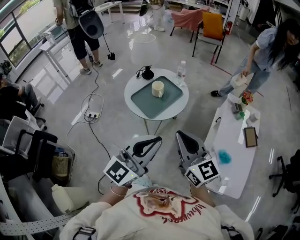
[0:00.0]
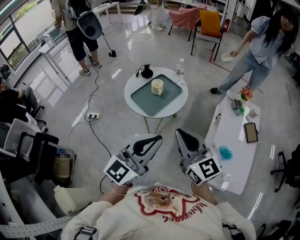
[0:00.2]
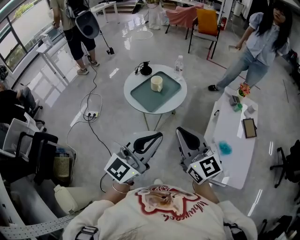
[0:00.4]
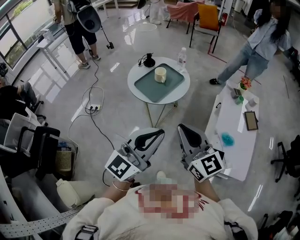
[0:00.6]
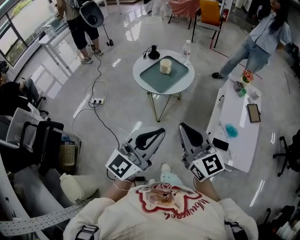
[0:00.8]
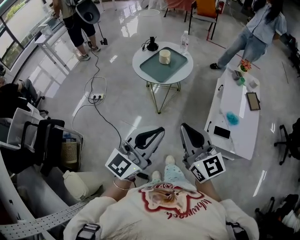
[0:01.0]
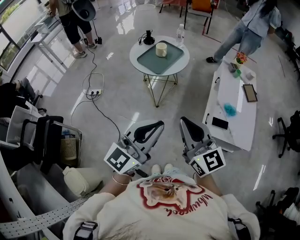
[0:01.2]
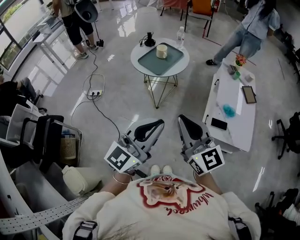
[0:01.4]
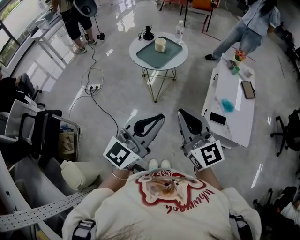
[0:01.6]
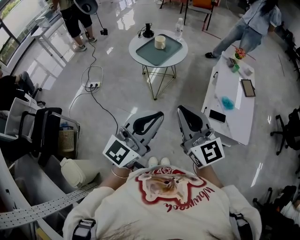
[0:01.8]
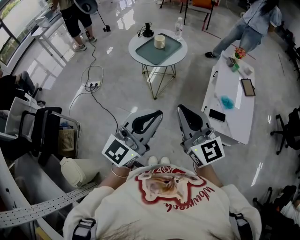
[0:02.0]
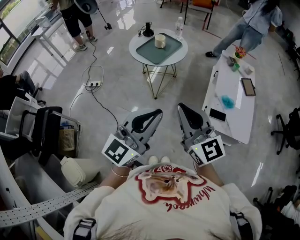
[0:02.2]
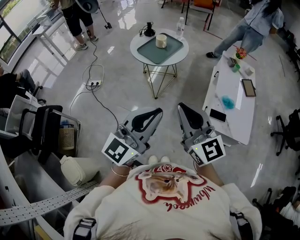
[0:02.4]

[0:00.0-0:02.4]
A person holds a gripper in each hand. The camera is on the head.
0:00.0 to 0:01.2: Both grippers travel together backward, approximately 25 cm.
0:01.2 to 0:02.4: The grippers move only a little.

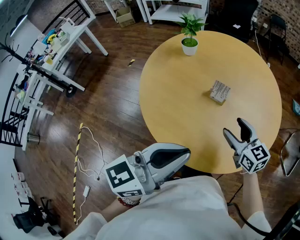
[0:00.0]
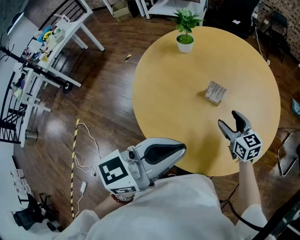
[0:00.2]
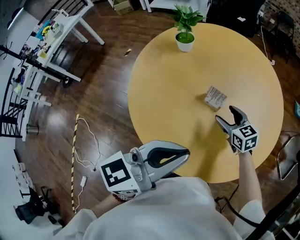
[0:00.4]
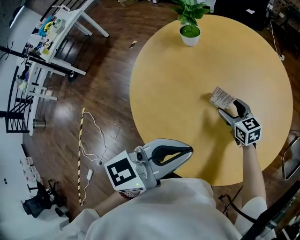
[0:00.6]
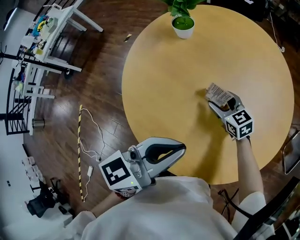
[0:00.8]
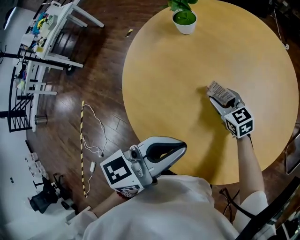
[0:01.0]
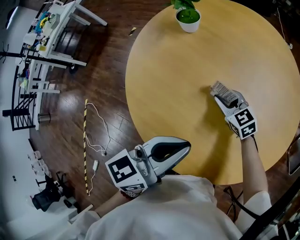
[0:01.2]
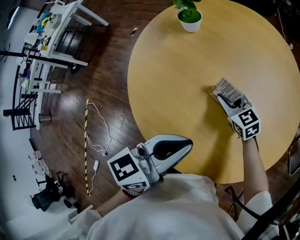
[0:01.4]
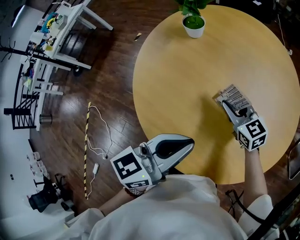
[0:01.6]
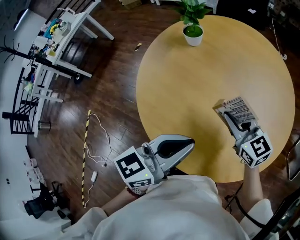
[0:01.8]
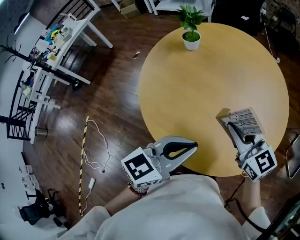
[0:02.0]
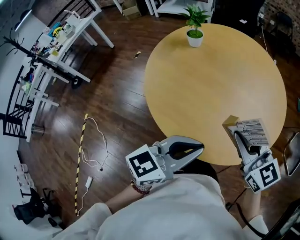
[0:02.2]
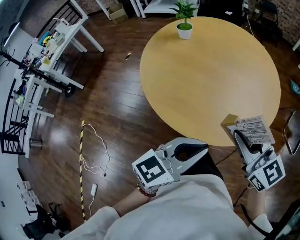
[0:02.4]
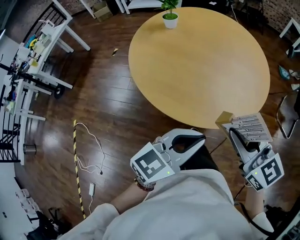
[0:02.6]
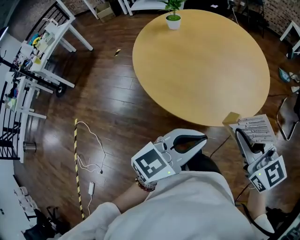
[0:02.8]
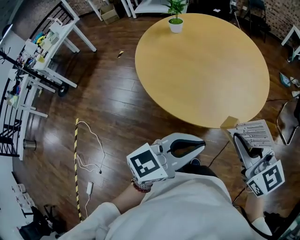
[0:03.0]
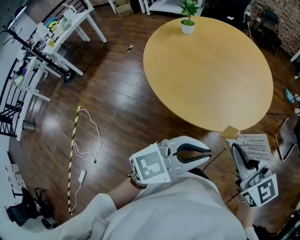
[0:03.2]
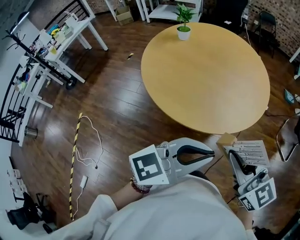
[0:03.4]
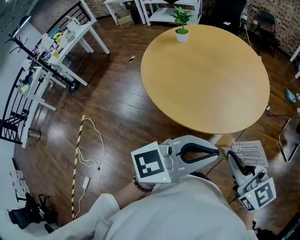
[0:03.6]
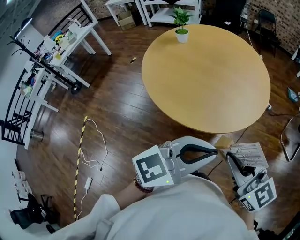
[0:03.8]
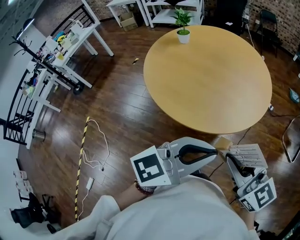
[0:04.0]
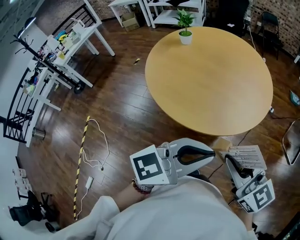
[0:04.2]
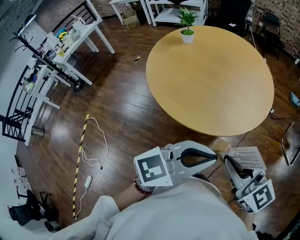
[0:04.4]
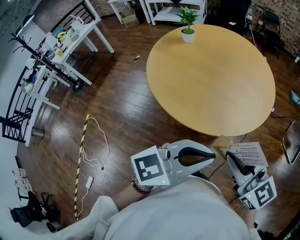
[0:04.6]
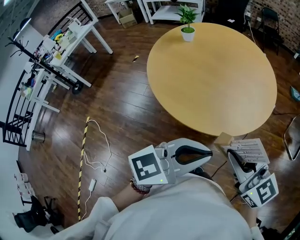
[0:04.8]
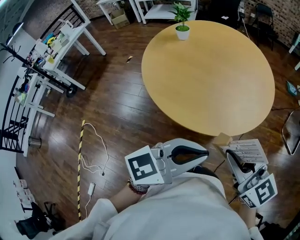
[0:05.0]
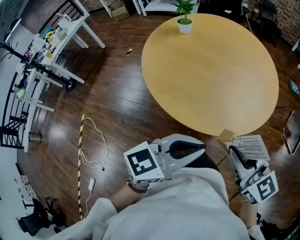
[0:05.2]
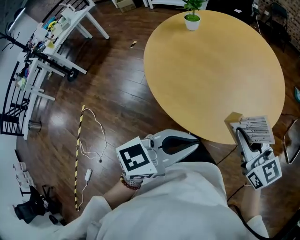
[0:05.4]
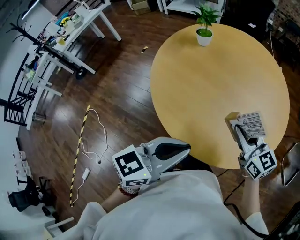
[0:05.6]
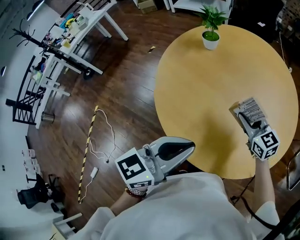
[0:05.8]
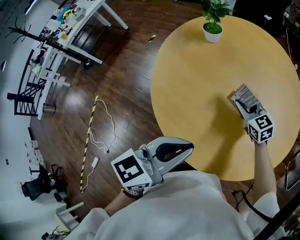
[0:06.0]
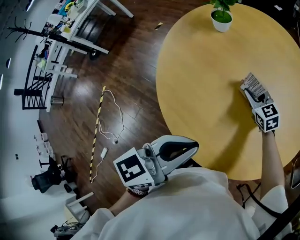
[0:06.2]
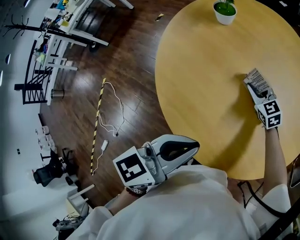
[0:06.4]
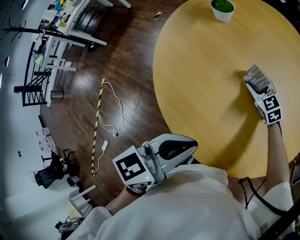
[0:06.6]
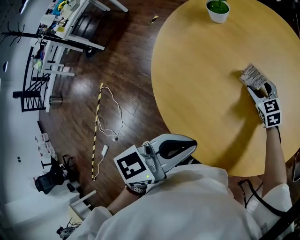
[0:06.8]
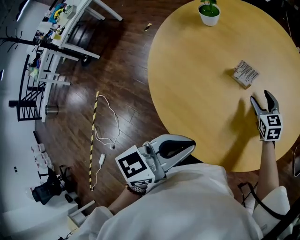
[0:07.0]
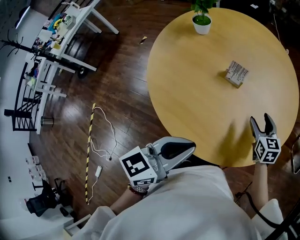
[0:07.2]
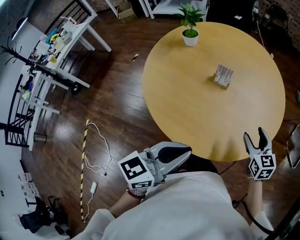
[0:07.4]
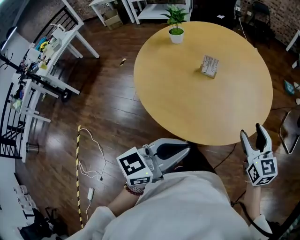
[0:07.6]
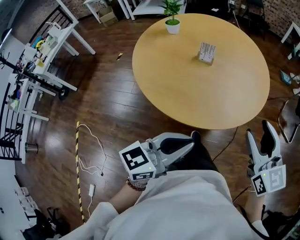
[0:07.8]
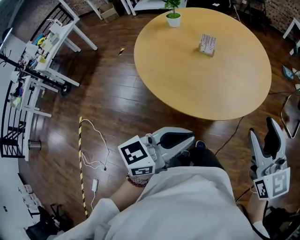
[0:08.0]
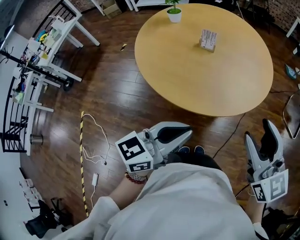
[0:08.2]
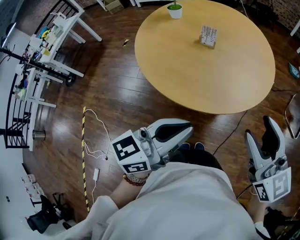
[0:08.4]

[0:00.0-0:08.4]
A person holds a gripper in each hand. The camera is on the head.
0:00.0 to 0:01.4: Both grippers move forward and downward, some 25 cm. The right gripper closes up.
0:01.4 to 0:02.8: The left gripper travels backward by approximately 30 cm, and turns by some 30 degrees. Meanwhile the right gripper heads backward and upward, covering roughly 50 cm, and turns by about 20 degrees.
0:02.8 to 0:04.2: The left gripper shifts about 15 cm to the right, upward and backward, while the right gripper is displaced backward and to the right by approximately 10 cm.
0:04.2 to 0:05.6: The left gripper goes some 25 cm forward, to the left and downward, and changes its angle by roughly 20 degrees. Meanwhile the right gripper goes roughly 30 cm forward and downward.
0:05.6 to 0:07.0: The left gripper is displaced forward and downward by about 10 cm. The right gripper moves forward and downward, approximately 25 cm, changes its angle by roughly 30 degrees, and opens.
0:07.0 to 0:08.4: The left gripper heads backward, to the right and upward, covering roughly 25 cm. Meanwhile the right gripper is displaced backward and upward by some 50 cm, and points its fingers about 30 degrees further upward.

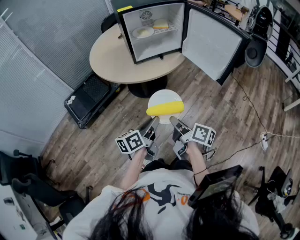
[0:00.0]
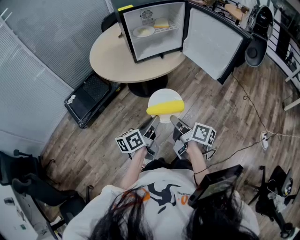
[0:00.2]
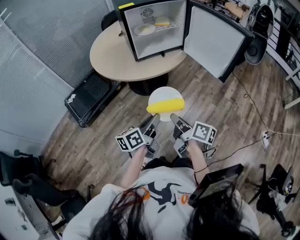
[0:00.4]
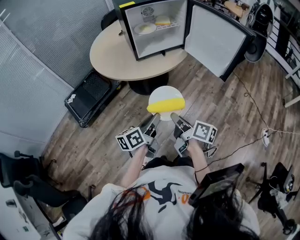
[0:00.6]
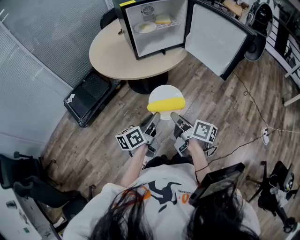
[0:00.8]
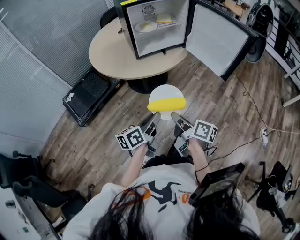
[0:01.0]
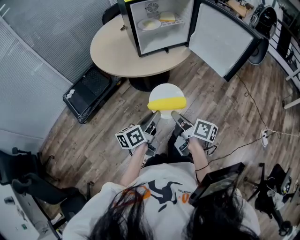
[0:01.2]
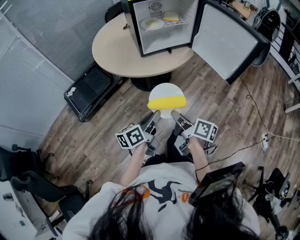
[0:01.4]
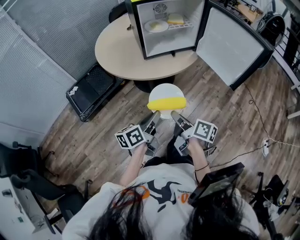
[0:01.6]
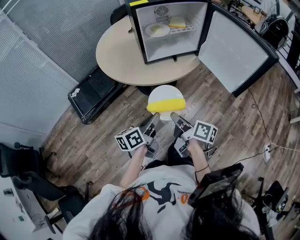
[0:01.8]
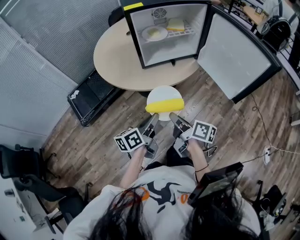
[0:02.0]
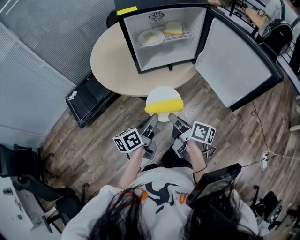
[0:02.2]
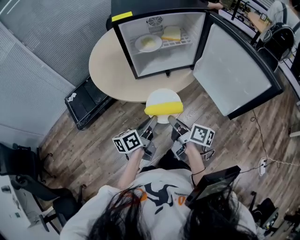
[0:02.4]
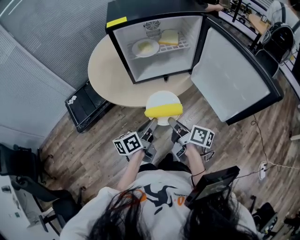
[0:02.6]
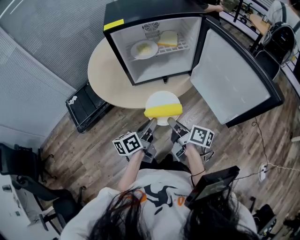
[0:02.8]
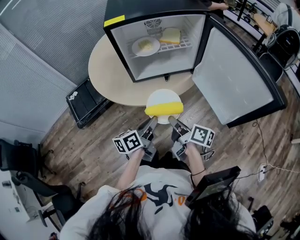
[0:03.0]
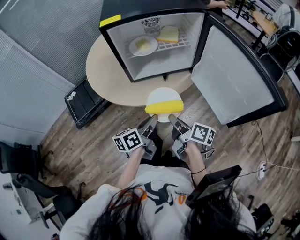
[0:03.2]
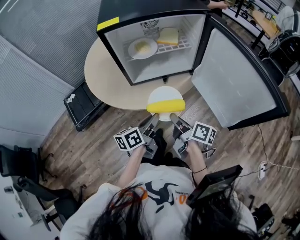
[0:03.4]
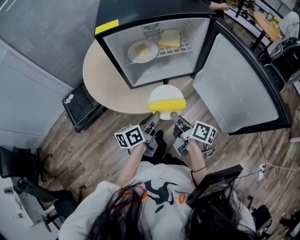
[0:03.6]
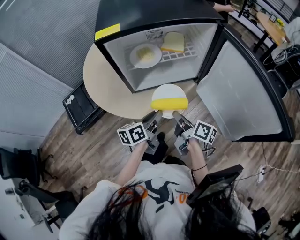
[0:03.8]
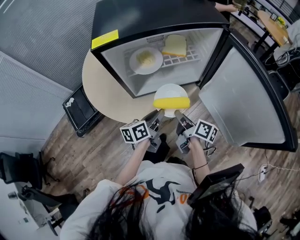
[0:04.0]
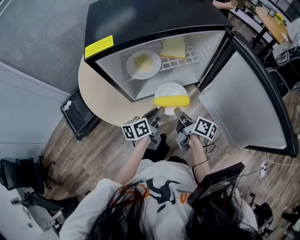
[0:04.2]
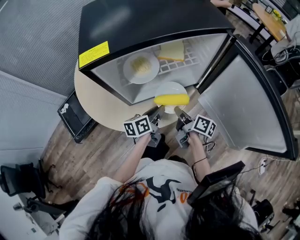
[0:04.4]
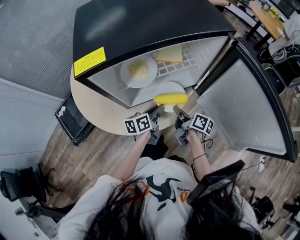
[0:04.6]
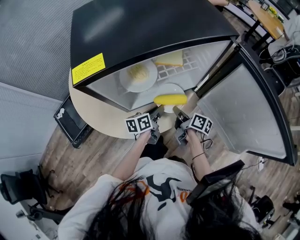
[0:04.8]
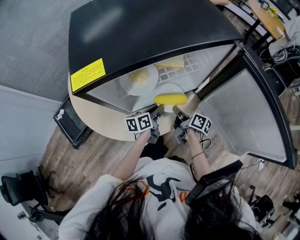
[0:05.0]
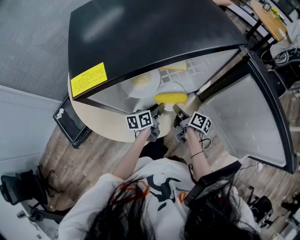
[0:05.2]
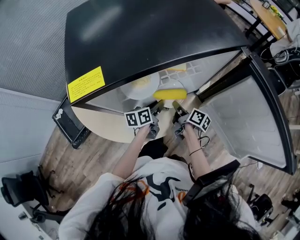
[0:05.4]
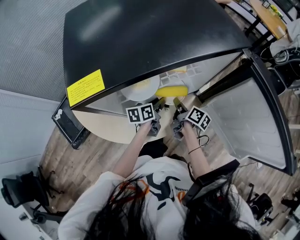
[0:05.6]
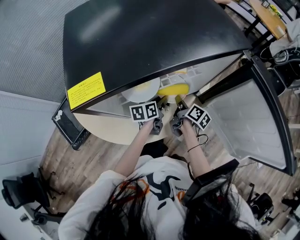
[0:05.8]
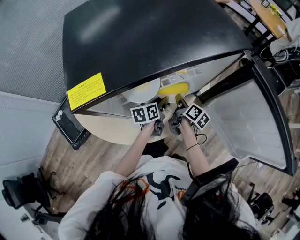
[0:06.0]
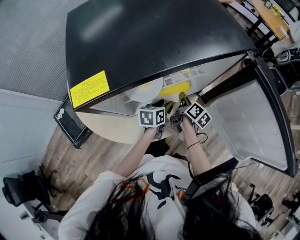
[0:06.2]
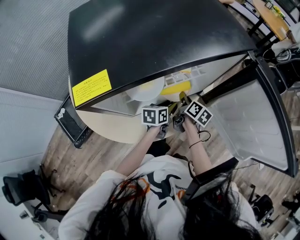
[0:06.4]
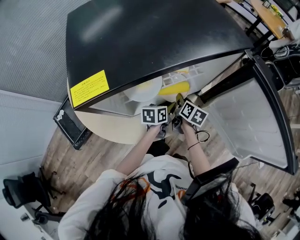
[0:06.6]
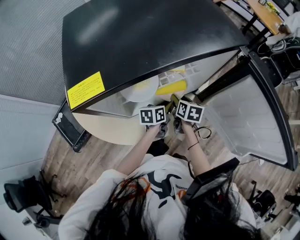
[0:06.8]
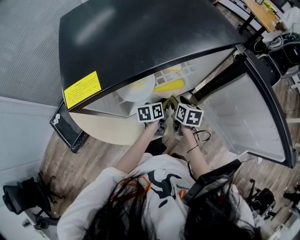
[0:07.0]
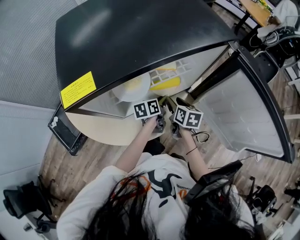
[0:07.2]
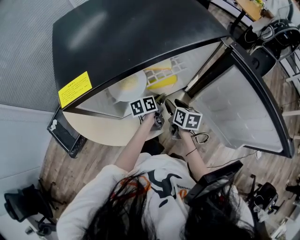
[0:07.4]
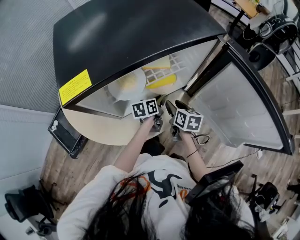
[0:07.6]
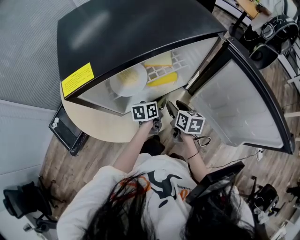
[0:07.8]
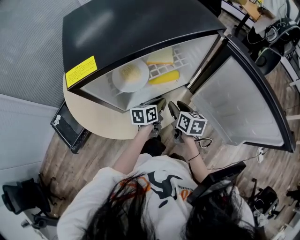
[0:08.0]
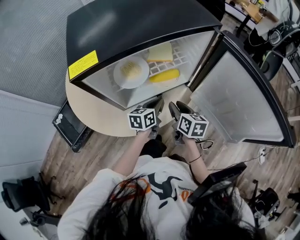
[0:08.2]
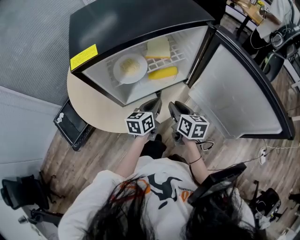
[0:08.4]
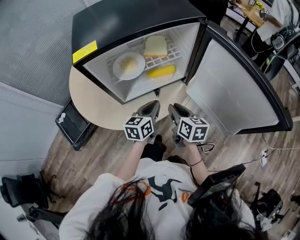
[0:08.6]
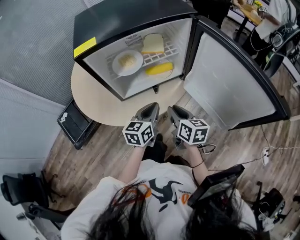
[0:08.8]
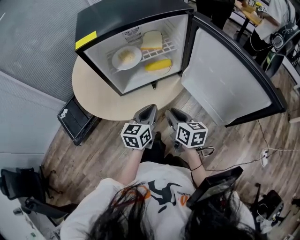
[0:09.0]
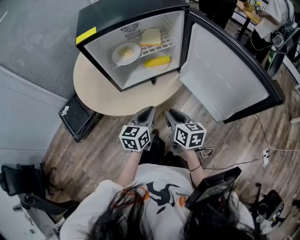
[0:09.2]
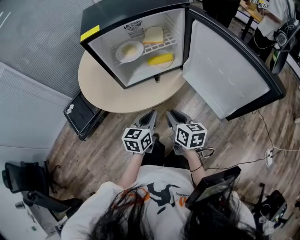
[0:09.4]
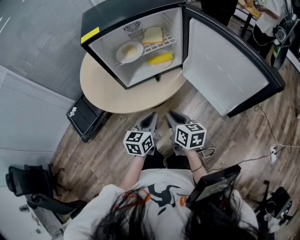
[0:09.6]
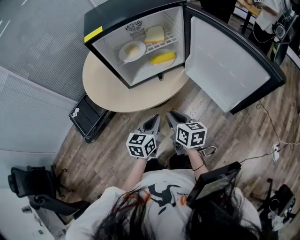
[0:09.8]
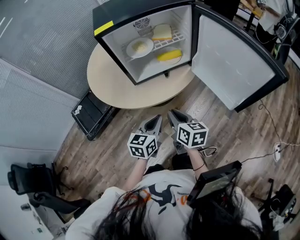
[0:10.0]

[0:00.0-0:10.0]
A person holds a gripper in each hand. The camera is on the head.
0:00.0 to 0:01.4: The right gripper moves about 5 cm, while the left gripper changes place by about 5 cm.
0:01.4 to 0:02.8: Both grippers travel together forward and to the right, some 20 cm.
0:02.8 to 0:04.2: Both grippers move forward, roughly 20 cm.
0:04.2 to 0:05.8: The grippers both shift forward and downward by some 15 cm. The right gripper turns by about 20 degrees.
0:05.8 to 0:07.2: The right gripper swivels about 40 degrees, and opens.
0:07.2 to 0:08.6: Both grippers move backward and upward, approximately 15 cm. The right gripper closes up; the left gripper changes its angle by roughly 30 degrees.
0:08.6 to 0:10.0: The grippers both shift backward by roughly 20 cm.

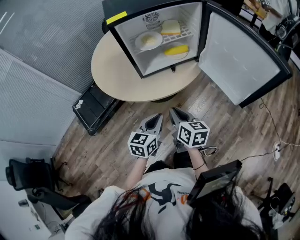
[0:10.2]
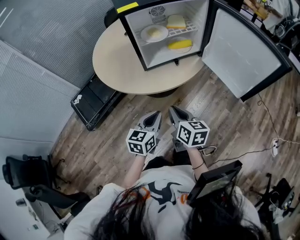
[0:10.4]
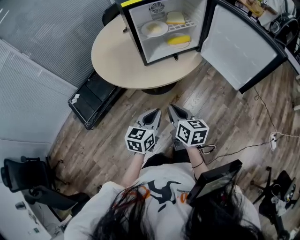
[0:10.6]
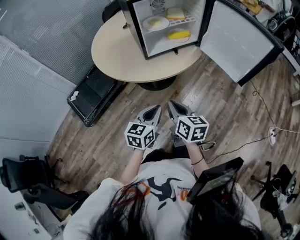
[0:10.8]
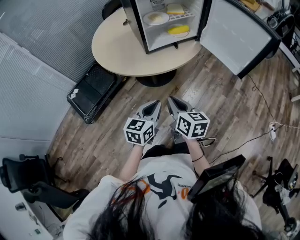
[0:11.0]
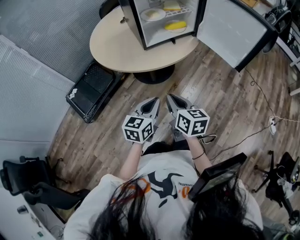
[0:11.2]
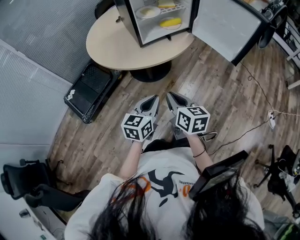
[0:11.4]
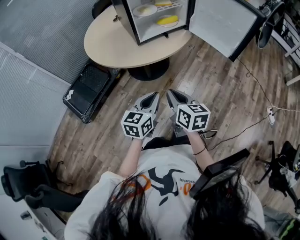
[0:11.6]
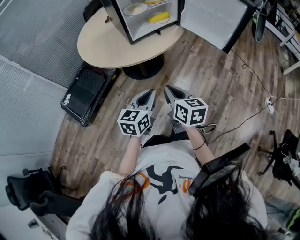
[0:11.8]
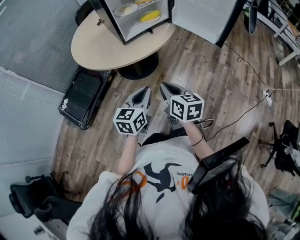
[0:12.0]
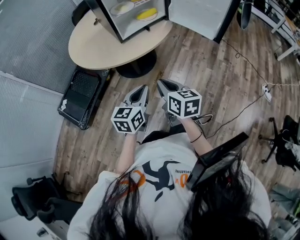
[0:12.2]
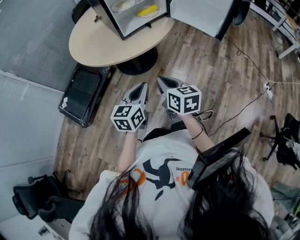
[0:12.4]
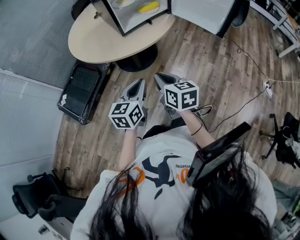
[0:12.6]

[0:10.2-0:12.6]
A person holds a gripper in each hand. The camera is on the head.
0:10.2 to 0:11.4: The two grippers go approximately 15 cm backward and to the left.
0:11.4 to 0:12.6: The grippers make only small movements.
